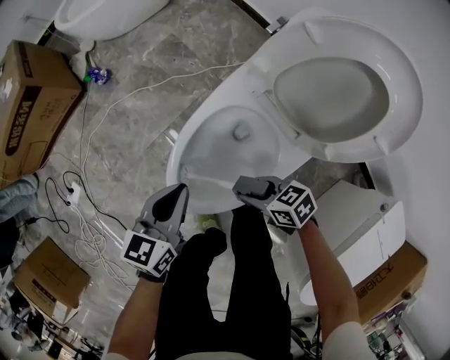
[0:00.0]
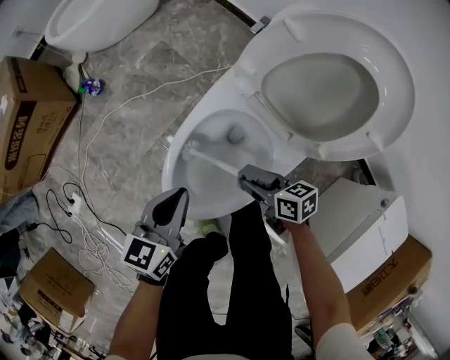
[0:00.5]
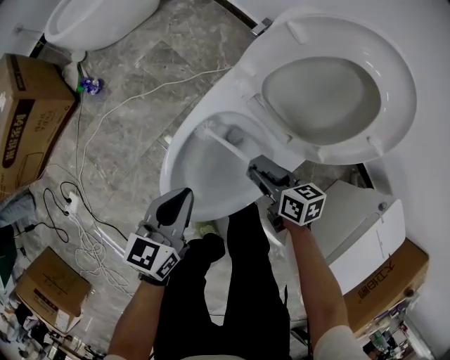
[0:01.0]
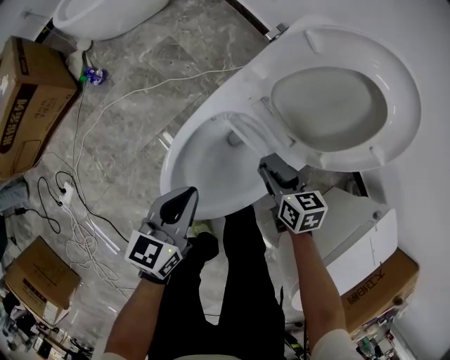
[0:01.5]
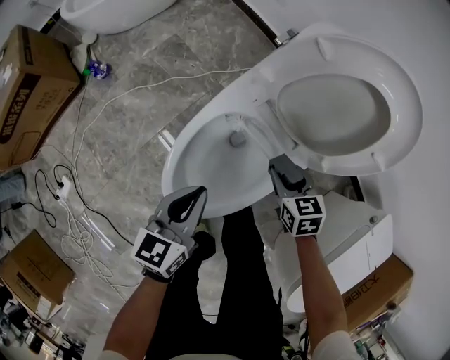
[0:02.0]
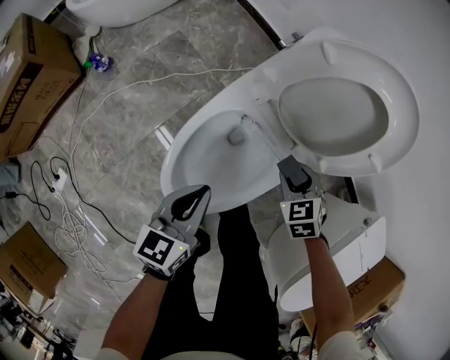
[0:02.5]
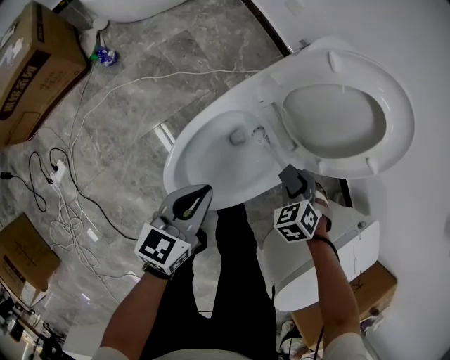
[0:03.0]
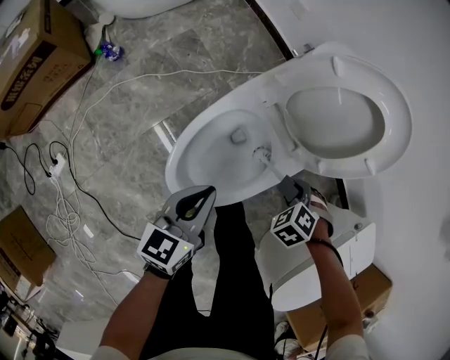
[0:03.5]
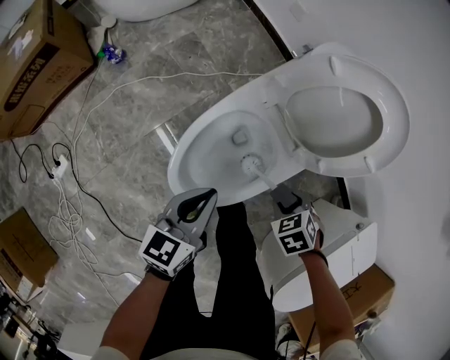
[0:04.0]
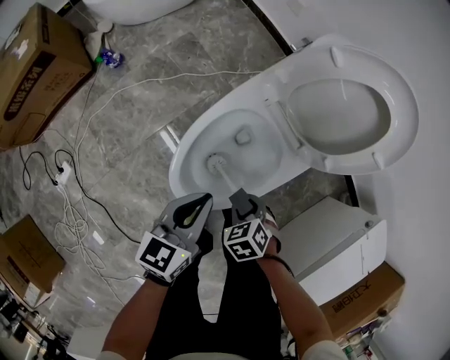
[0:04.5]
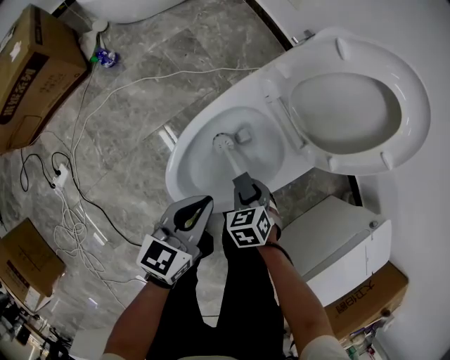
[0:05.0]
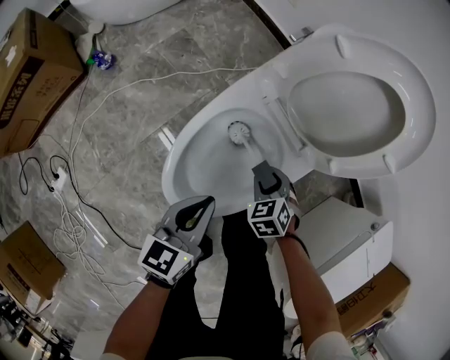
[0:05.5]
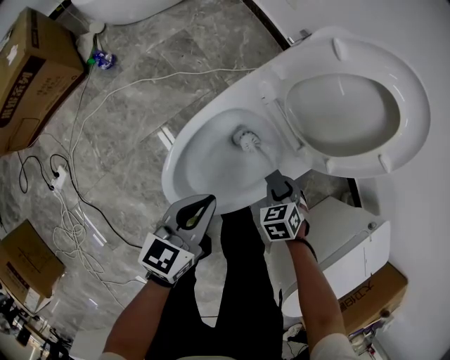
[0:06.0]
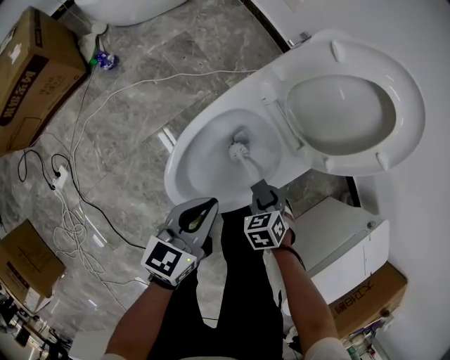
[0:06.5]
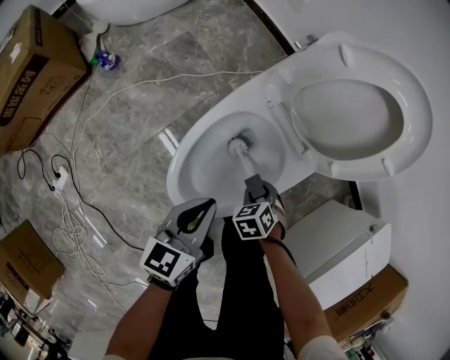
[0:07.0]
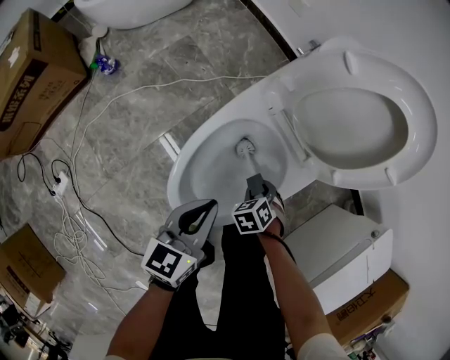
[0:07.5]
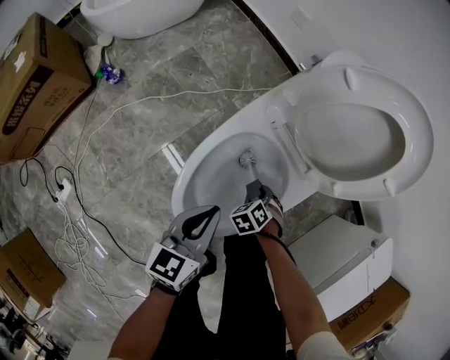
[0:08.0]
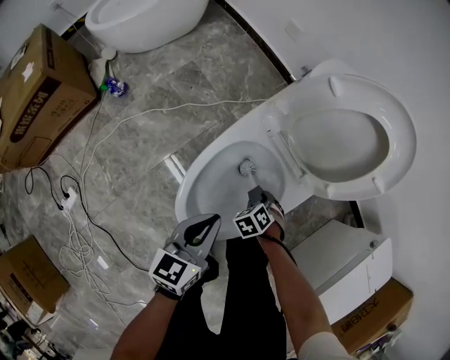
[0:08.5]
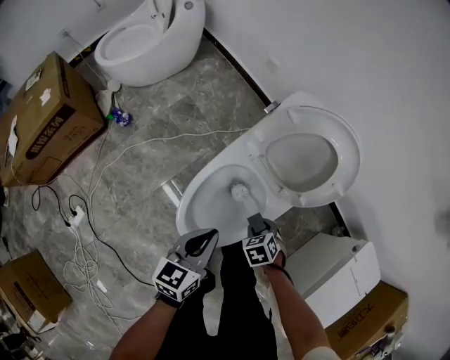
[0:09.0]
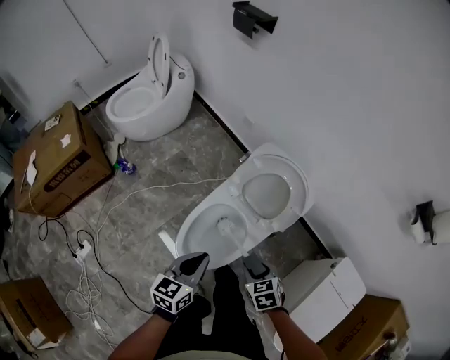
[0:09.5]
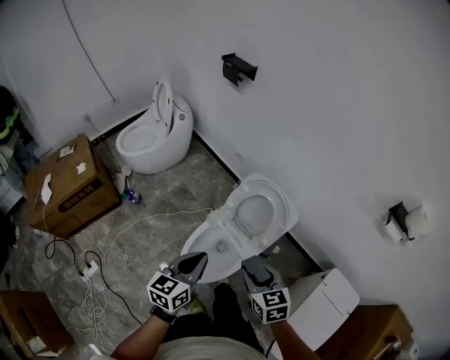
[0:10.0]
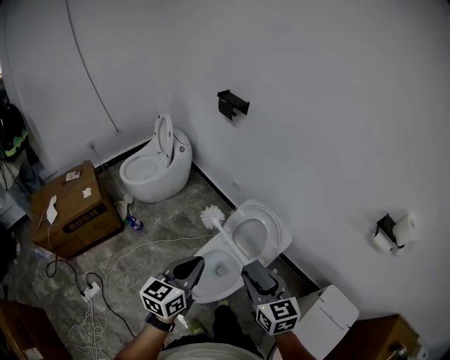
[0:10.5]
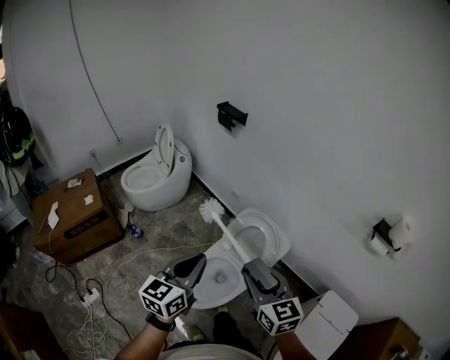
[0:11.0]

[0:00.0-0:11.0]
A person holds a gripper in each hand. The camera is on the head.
0:00.0 to 0:02.0: The right gripper moves some 15 cm, and changes its angle by approximately 40 degrees.
0:02.0 to 0:03.5: The right gripper moves roughly 10 cm, and twists some 50 degrees counterclockwise, seen from behind.
0:03.5 to 0:05.5: The left gripper is displaced downward by approximately 5 cm. The right gripper travels downward by roughly 10 cm, and turns by about 30 degrees.
0:05.5 to 0:07.5: The right gripper shifts roughly 5 cm downward.
0:07.5 to 0:09.0: The grippers both shift upward by about 15 cm.
0:09.0 to 0:11.0: The two grippers go approximately 50 cm upward. The right gripper points its fingers about 60 degrees further upward, while the left gripper rotates roughly 20 degrees.

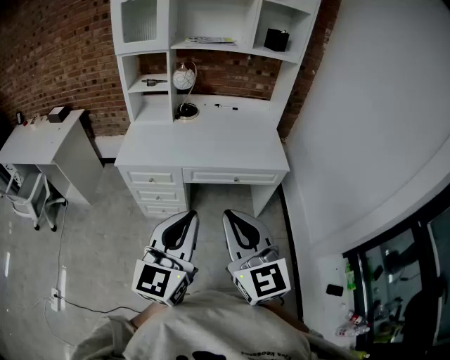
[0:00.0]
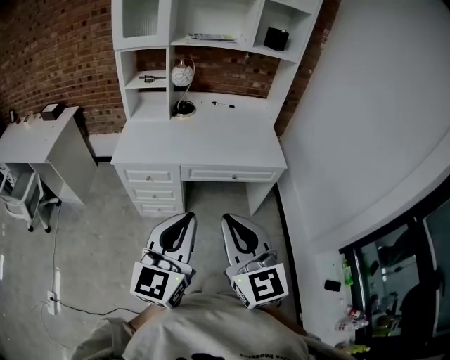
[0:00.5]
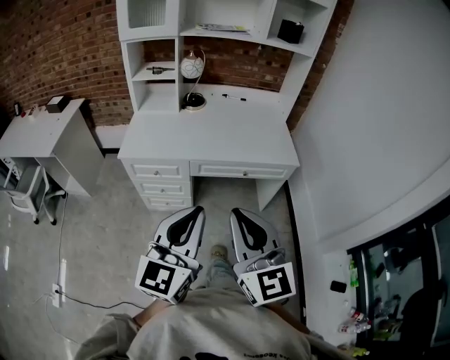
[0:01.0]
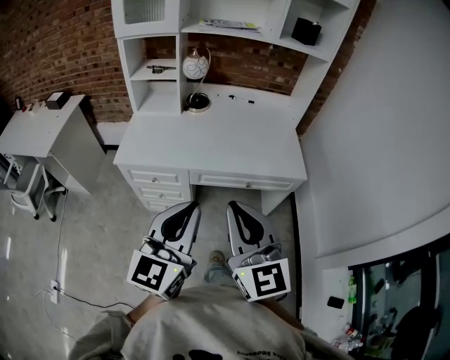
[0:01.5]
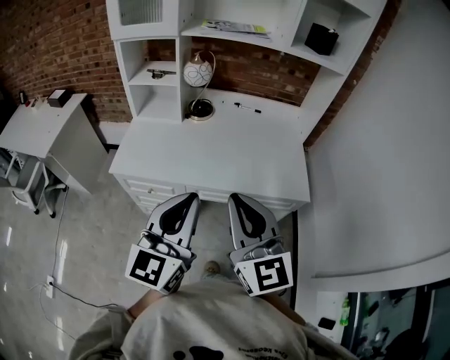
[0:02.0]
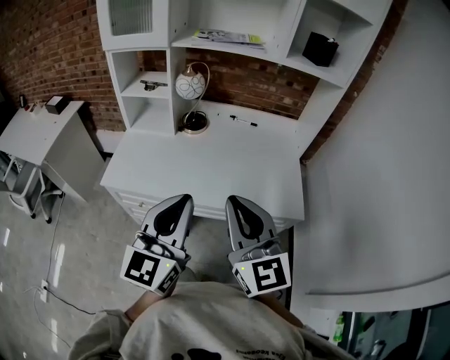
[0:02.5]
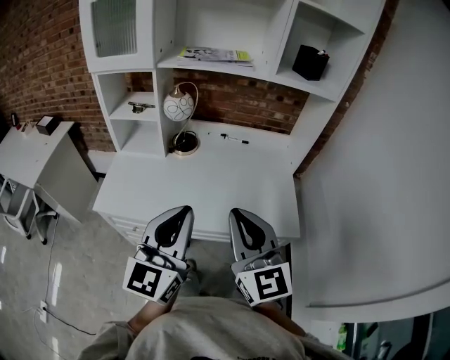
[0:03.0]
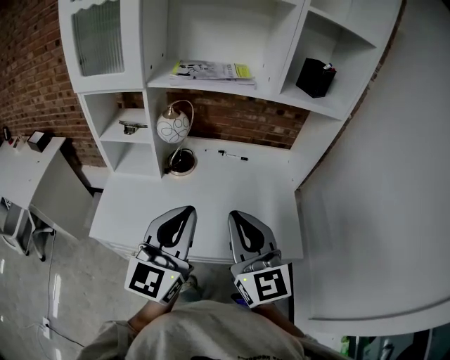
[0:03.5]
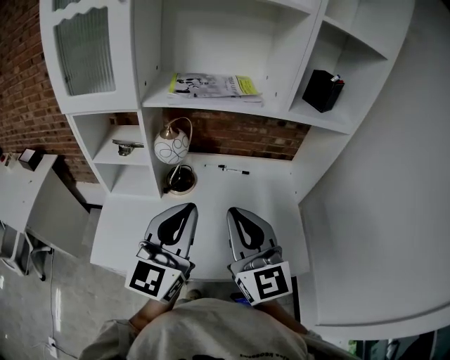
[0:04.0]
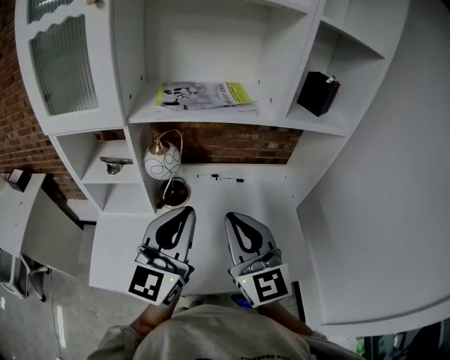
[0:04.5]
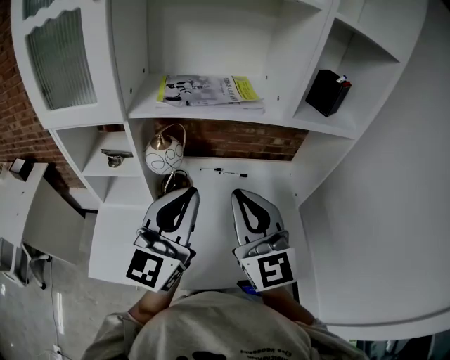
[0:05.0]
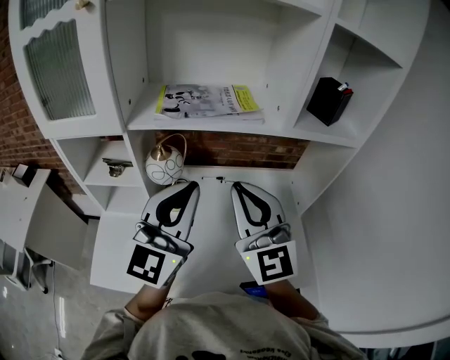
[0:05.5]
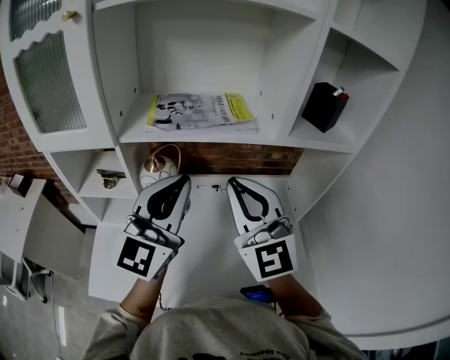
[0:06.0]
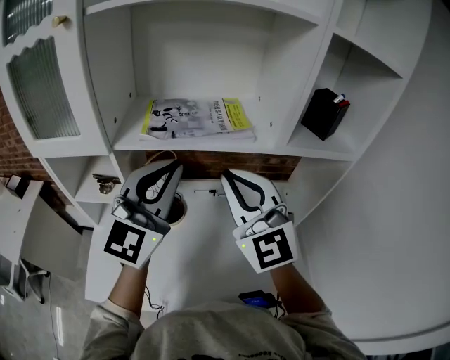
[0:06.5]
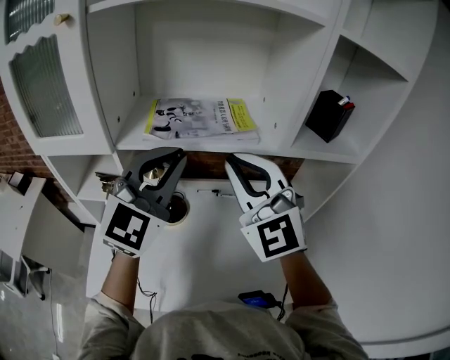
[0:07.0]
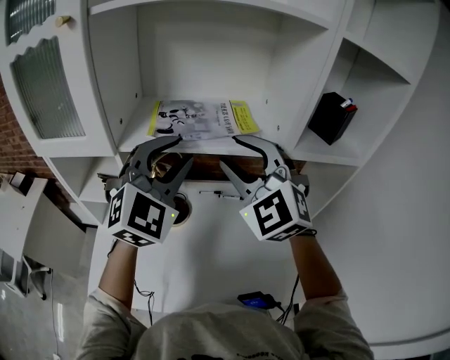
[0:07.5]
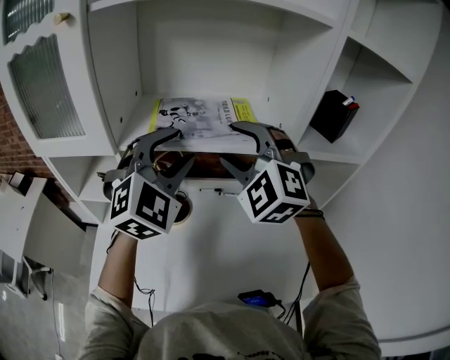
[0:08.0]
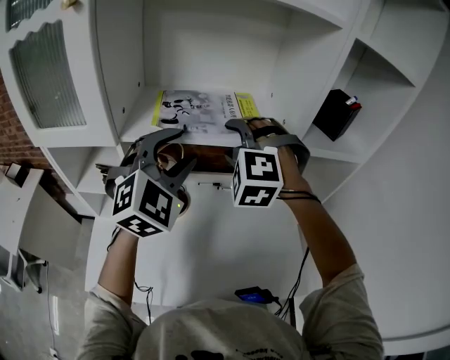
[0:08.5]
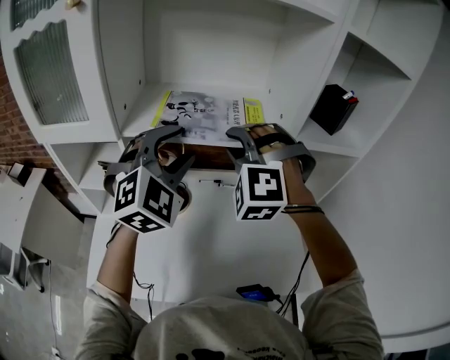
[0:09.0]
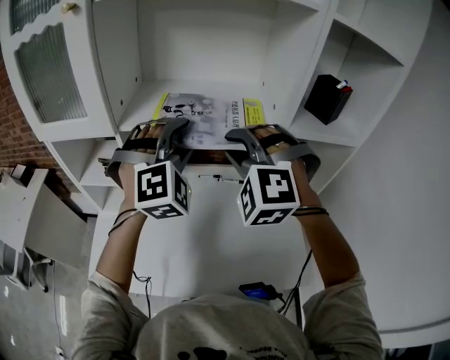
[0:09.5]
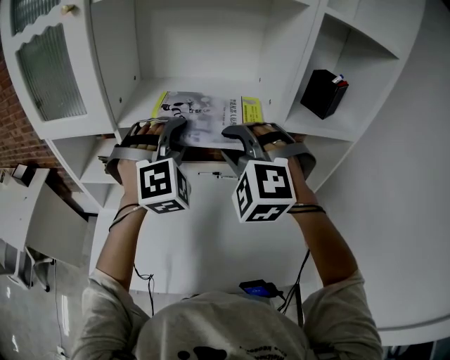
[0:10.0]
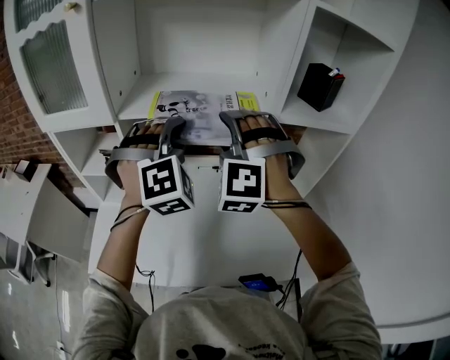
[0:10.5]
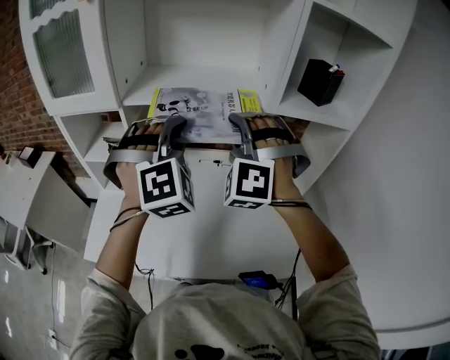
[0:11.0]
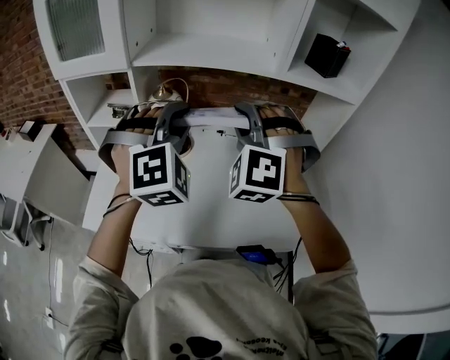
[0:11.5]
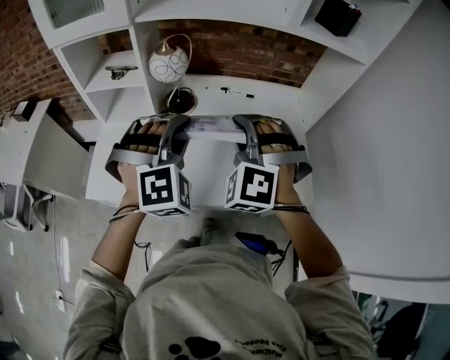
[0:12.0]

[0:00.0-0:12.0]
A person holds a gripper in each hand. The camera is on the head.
0:00.0 to 0:02.0: The two grippers go roughly 25 cm forward.
0:02.0 to 0:04.0: The two grippers go approximately 30 cm forward.
0:04.0 to 0:06.0: Both grippers travel together forward and upward, some 15 cm. The right gripper turns by approximately 20 degrees.
0:06.0 to 0:08.0: Both grippers move forward, some 10 cm. The left gripper changes its angle by about 50 degrees, and opens its fingers. Meanwhile the right gripper swivels about 40 degrees, and opens up.
0:08.0 to 0:10.0: The left gripper rotates about 30 degrees, while the right gripper goes approximately 5 cm backward, and closes up.
0:10.0 to 0:12.0: Both grippers travel together backward and downward, approximately 25 cm. The right gripper opens, then closes once more.

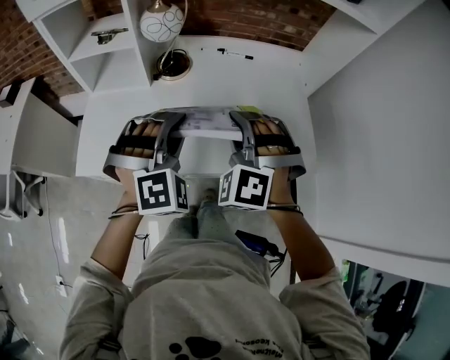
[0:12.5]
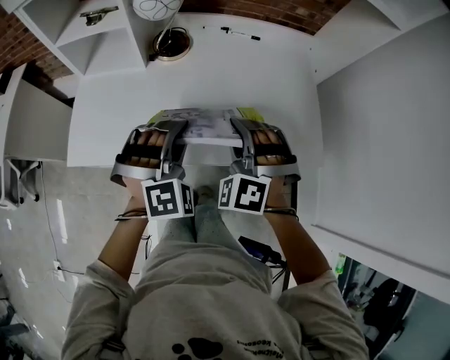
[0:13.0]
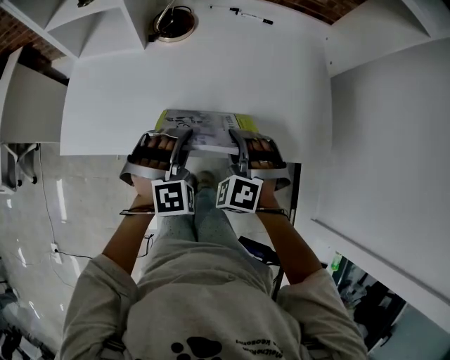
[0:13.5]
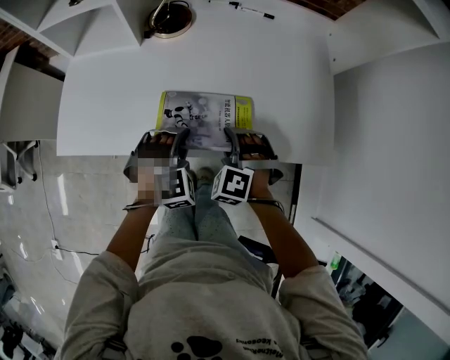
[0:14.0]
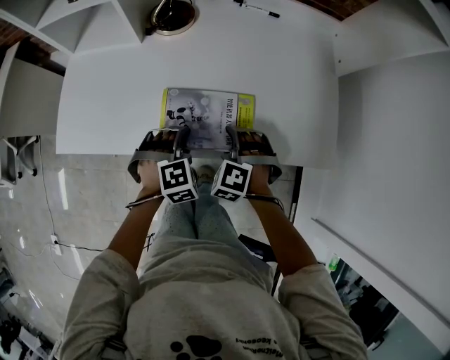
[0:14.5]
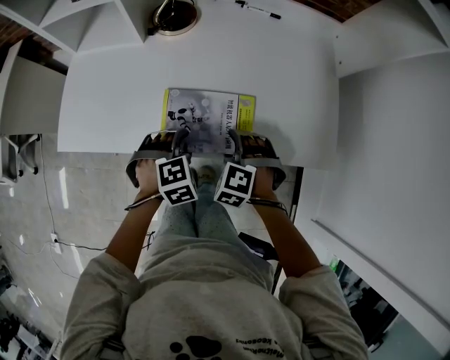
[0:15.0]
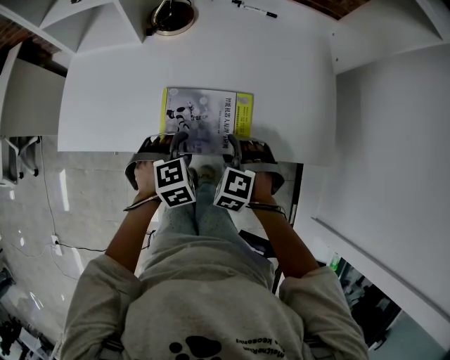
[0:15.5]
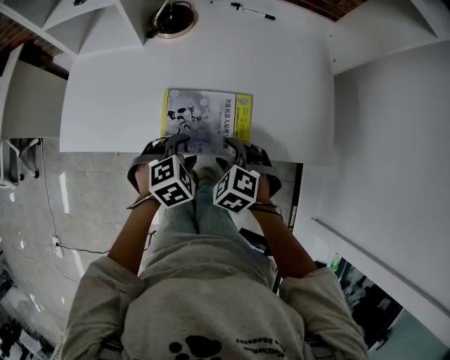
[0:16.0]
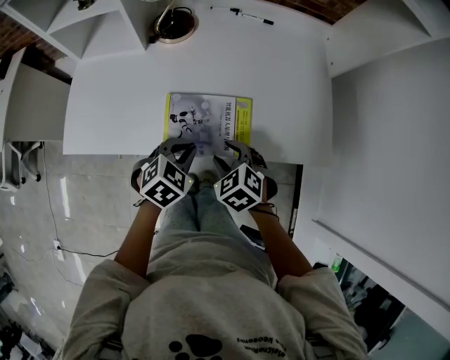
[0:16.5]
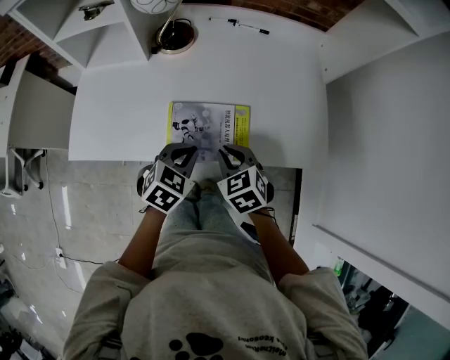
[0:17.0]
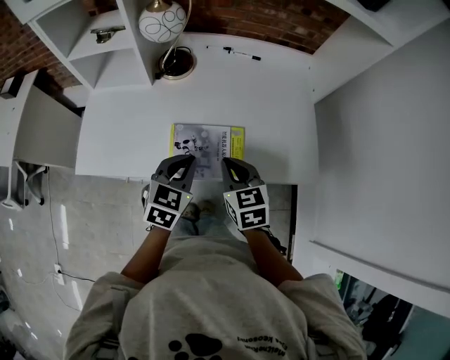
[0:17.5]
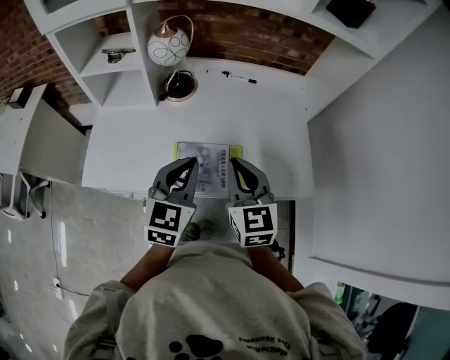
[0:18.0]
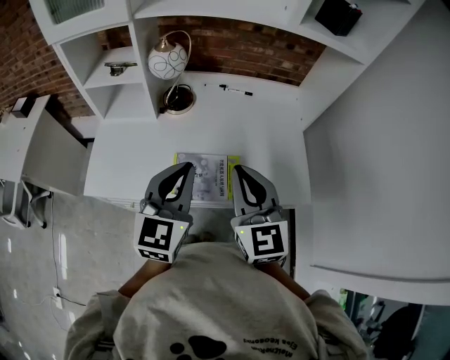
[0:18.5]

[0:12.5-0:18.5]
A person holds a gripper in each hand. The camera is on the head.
0:12.5 to 0:14.5: The grippers both shift downward by roughly 30 cm. The left gripper tips its fingers downward by roughly 30 degrees. The right gripper turns by some 30 degrees.
0:14.5 to 0:16.5: The left gripper is displaced upward by some 5 cm, swivels about 40 degrees, and closes its fingers, while the right gripper moves backward, roughly 5 cm, and swivels some 40 degrees.
0:16.5 to 0:18.5: Both grippers travel together upward, approximately 30 cm. The left gripper angles its fingers upward, by about 50 degrees, while the right gripper tilts its fingers some 50 degrees upward, and closes.
